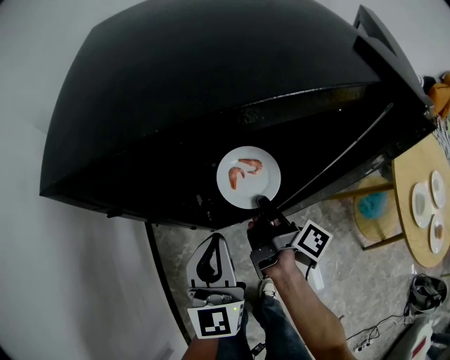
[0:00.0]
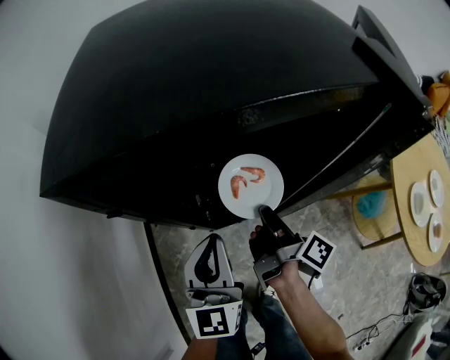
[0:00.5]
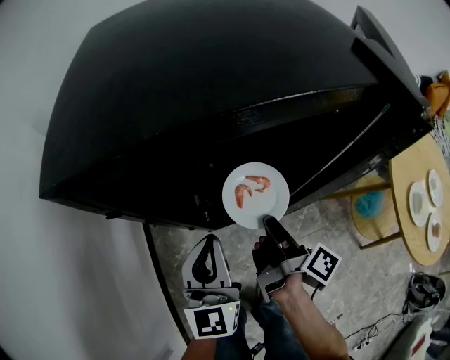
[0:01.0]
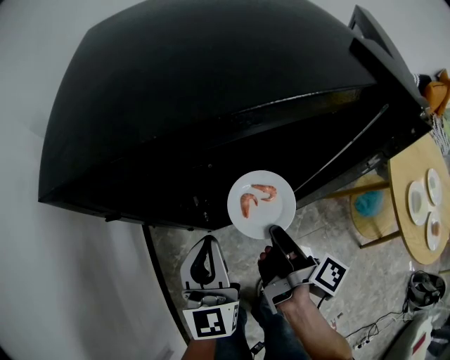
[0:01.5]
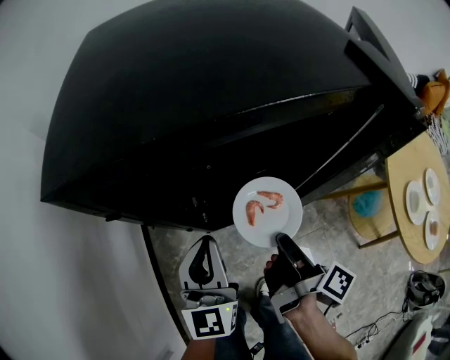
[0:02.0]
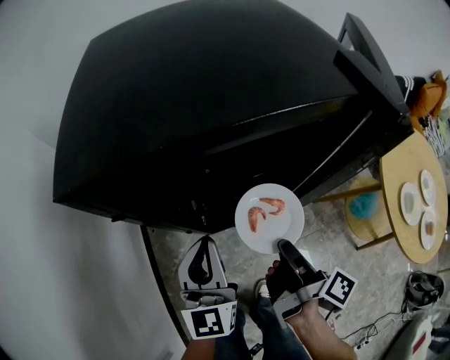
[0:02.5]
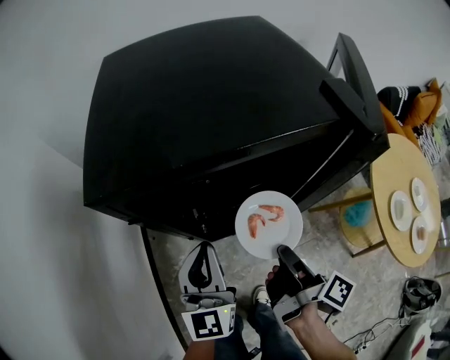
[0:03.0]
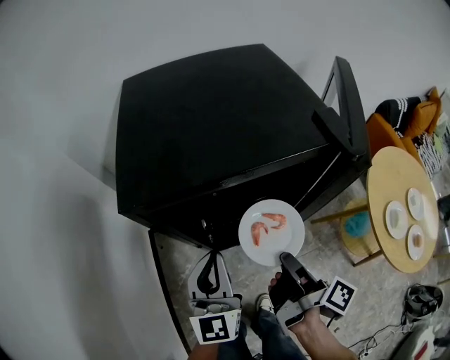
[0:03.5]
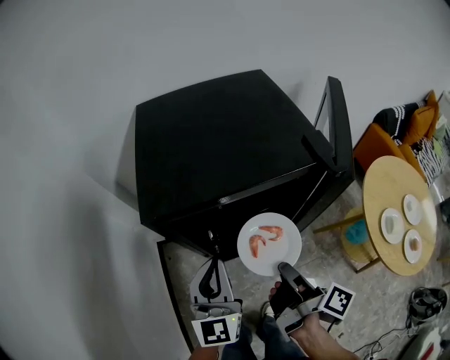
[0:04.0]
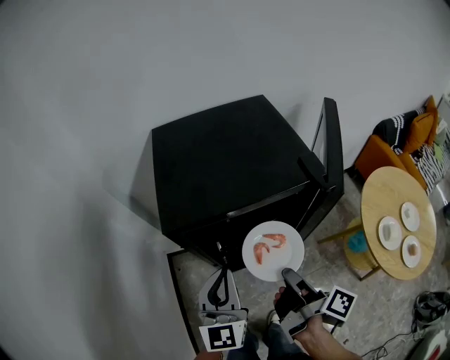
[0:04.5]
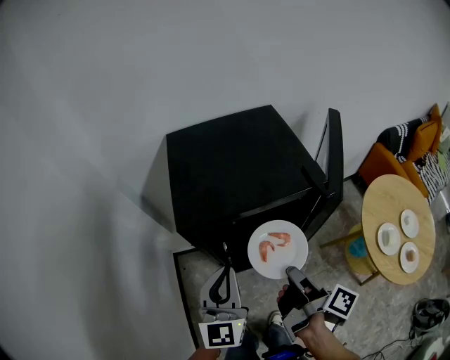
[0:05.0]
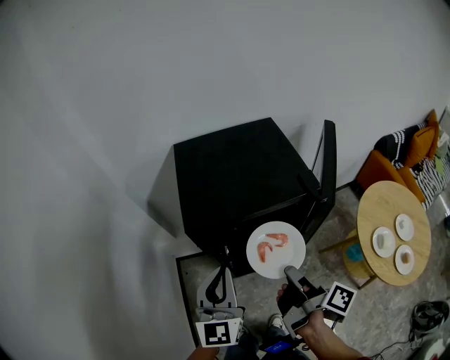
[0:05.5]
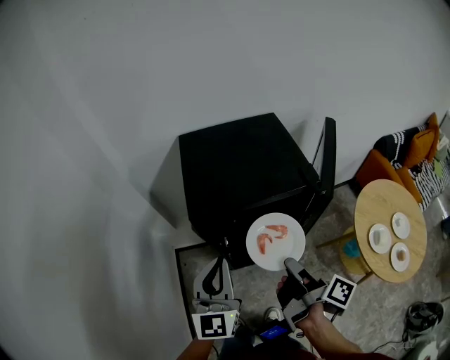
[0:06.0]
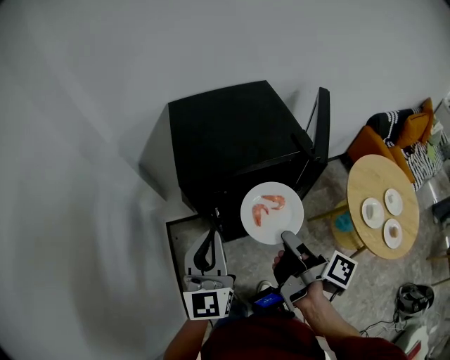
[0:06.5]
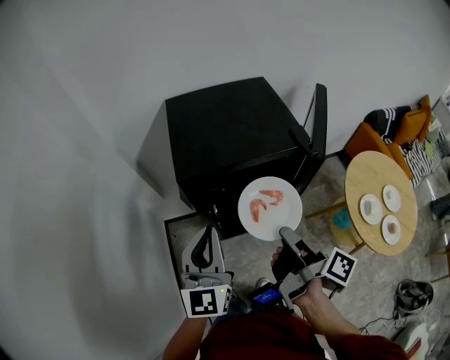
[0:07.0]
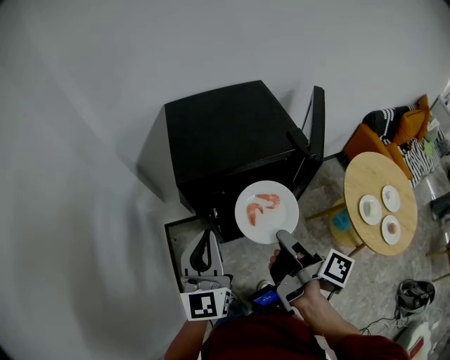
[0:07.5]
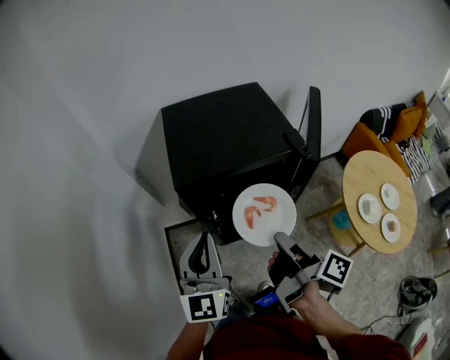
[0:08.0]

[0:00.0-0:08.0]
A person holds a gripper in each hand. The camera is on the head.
0:00.0 to 0:02.0: The right gripper moves backward, roughly 10 cm.
0:02.0 to 0:04.0: The grippers both shift upward by some 15 cm.
0:04.0 to 0:06.0: Both grippers travel together upward, some 15 cm.
0:06.0 to 0:08.0: The grippers move only a little.

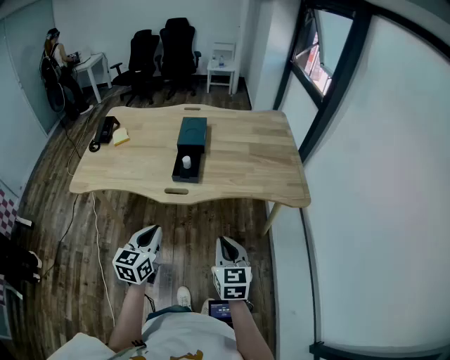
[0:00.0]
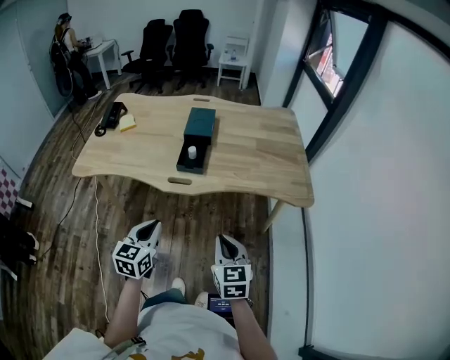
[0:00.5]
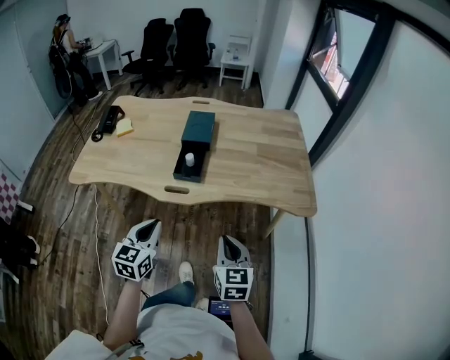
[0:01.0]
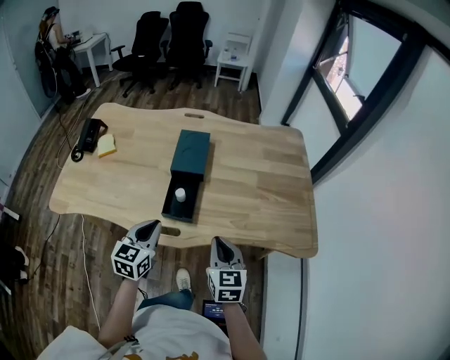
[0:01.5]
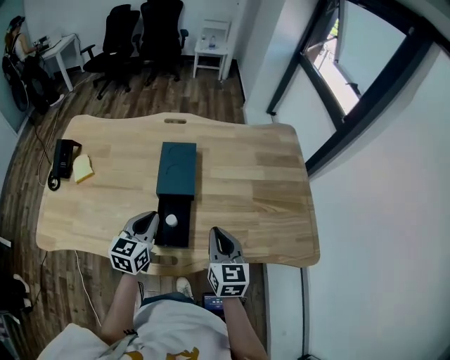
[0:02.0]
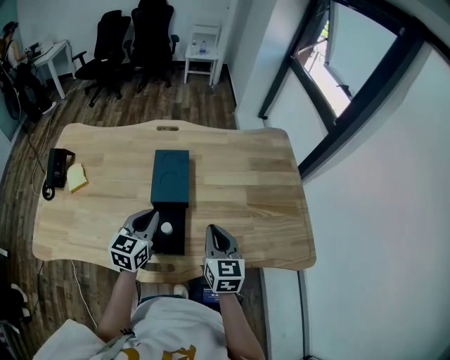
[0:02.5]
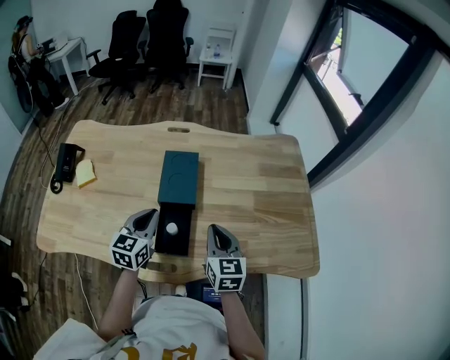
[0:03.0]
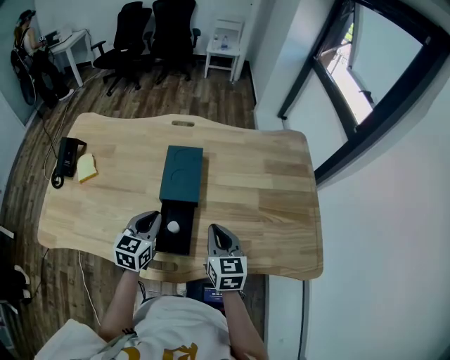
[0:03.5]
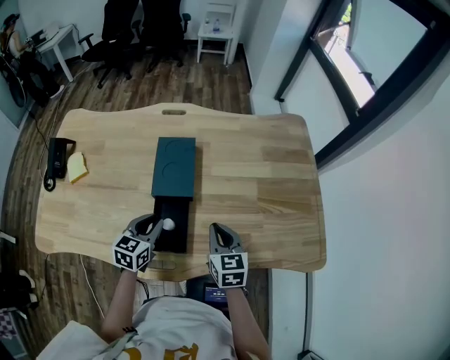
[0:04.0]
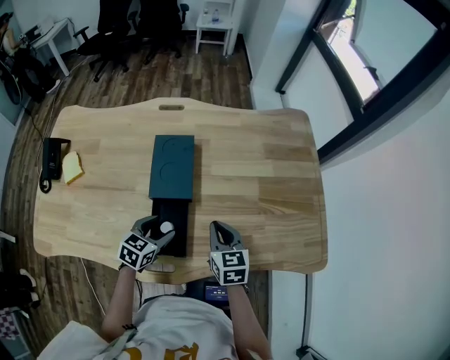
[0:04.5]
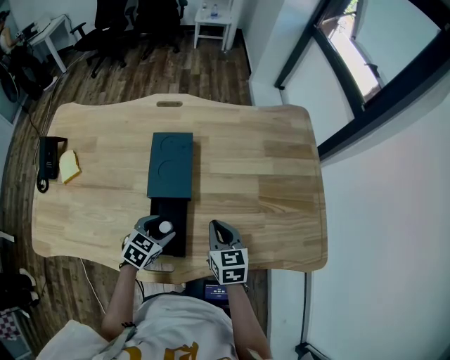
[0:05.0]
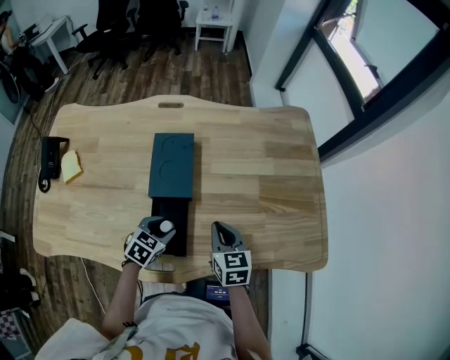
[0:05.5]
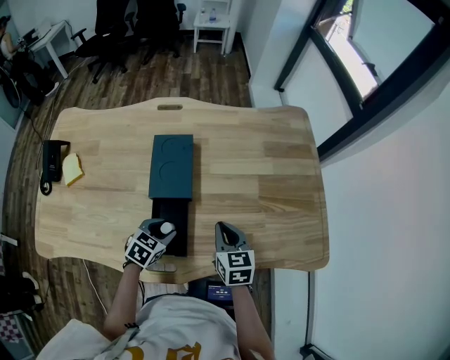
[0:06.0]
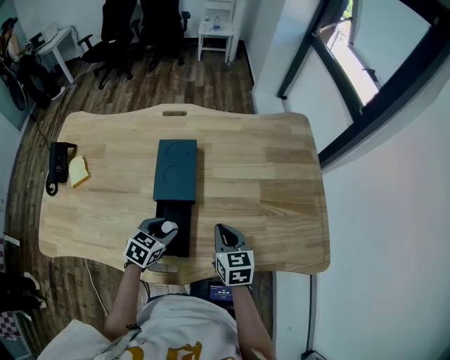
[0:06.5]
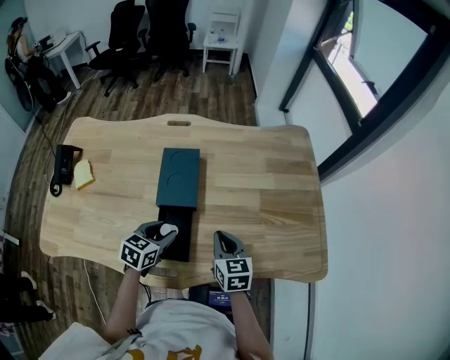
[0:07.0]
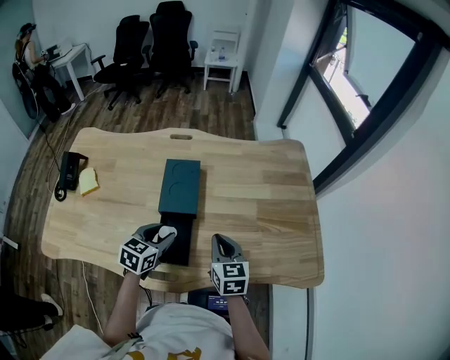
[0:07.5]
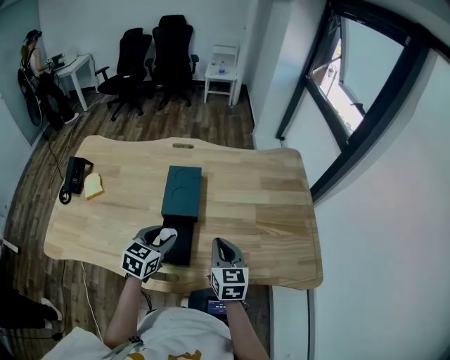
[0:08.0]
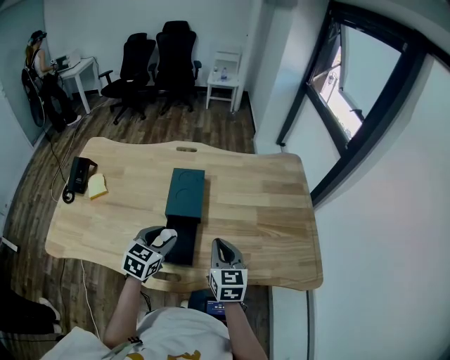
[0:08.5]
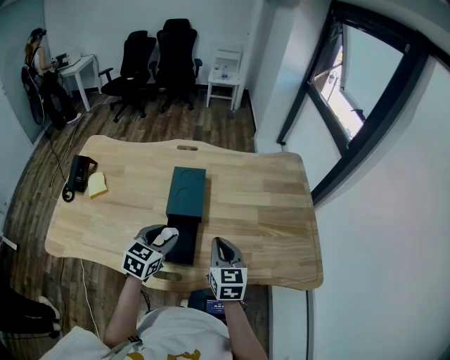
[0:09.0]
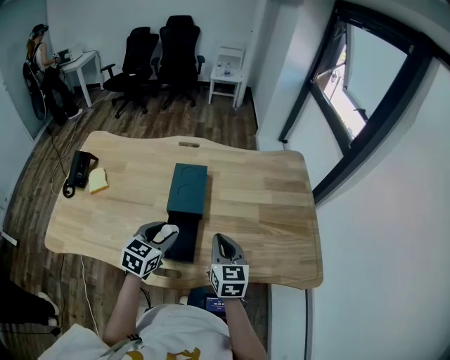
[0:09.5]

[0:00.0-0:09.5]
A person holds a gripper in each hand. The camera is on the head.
0:00.0 to 0:02.0: The two grippers go approximately 40 cm forward.
0:02.0 to 0:04.0: The left gripper heads downward, covering approximately 10 cm, while the right gripper shifts roughly 10 cm downward and forward.
0:04.0 to 0:05.5: The left gripper travels downward by about 5 cm, changes its angle by roughly 30 degrees, and opens.
0:05.5 to 0:07.5: The right gripper goes roughly 5 cm upward; the left gripper is displaced upward by about 10 cm.
0:07.5 to 0:09.5: The left gripper is displaced upward by some 5 cm. Meanwhile the right gripper moves roughly 5 cm.

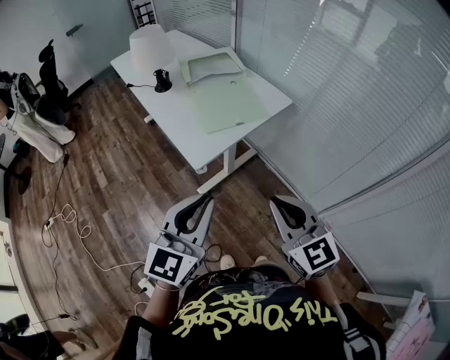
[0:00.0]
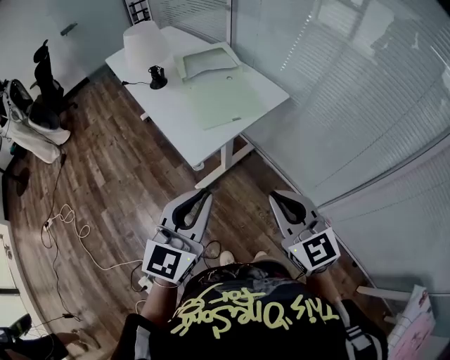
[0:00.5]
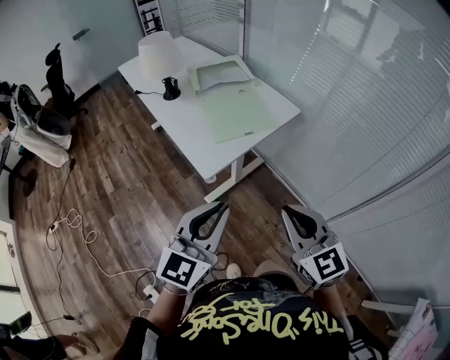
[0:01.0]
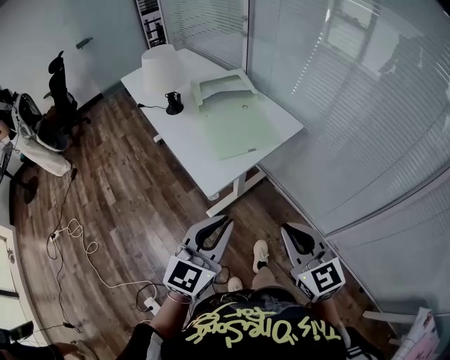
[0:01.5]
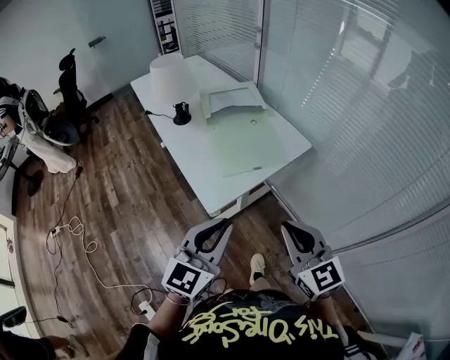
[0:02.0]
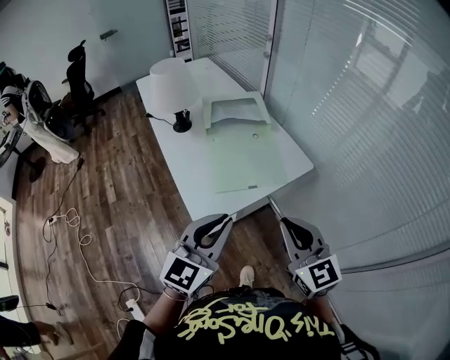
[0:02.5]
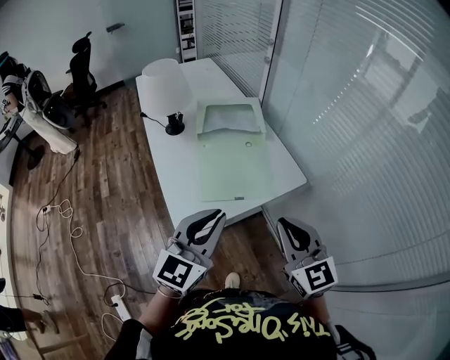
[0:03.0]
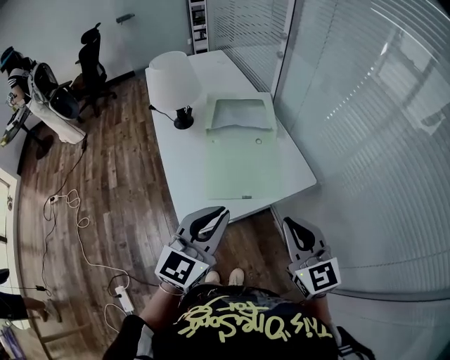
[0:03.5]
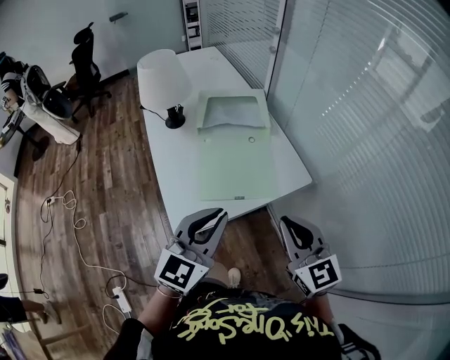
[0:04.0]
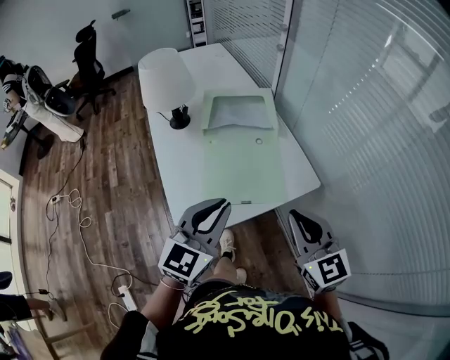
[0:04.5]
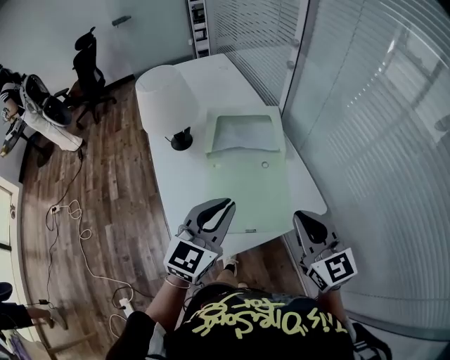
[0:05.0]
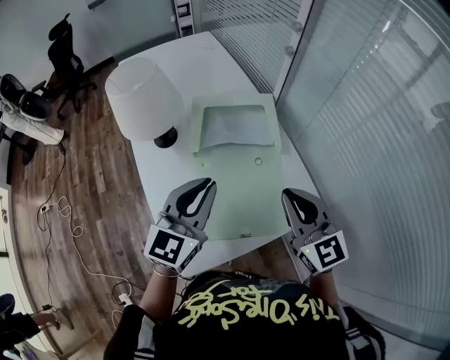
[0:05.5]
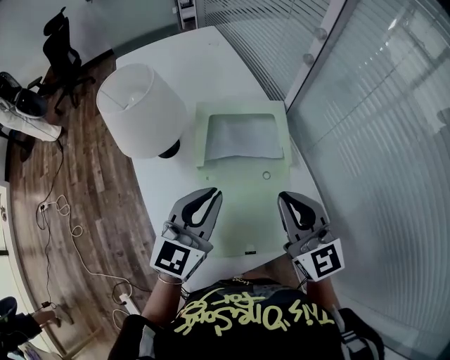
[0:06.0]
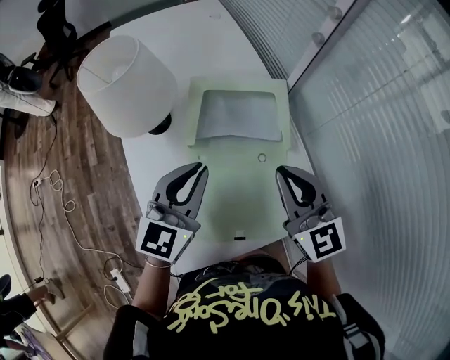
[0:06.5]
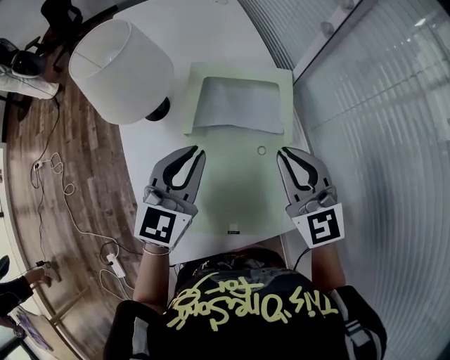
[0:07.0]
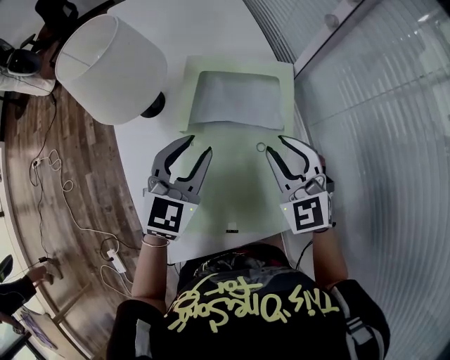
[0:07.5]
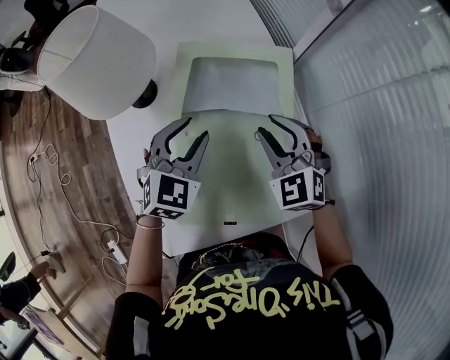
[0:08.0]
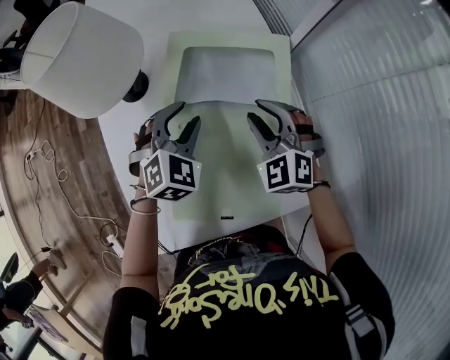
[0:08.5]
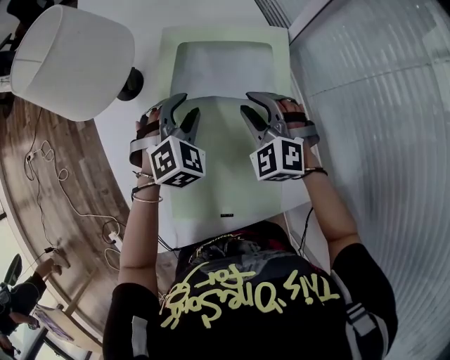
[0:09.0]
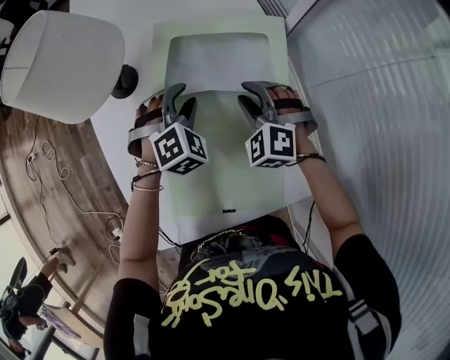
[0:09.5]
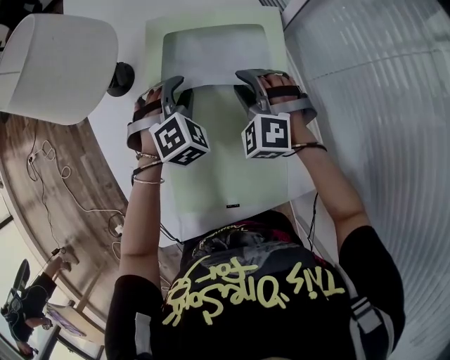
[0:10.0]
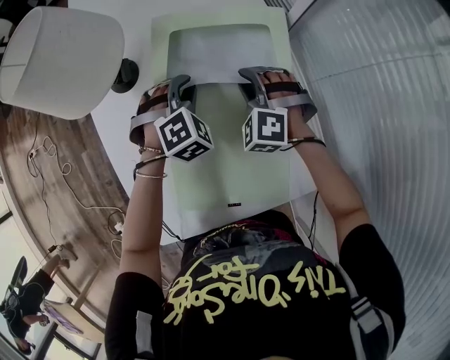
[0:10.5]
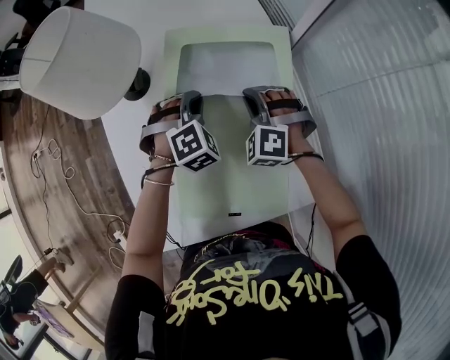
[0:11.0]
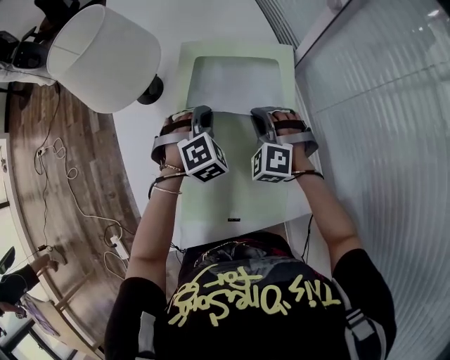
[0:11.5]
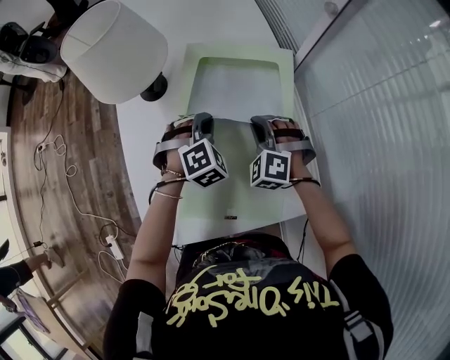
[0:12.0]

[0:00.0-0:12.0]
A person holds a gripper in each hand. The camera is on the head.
0:00.0 to 0:02.0: Both grippers move forward, some 10 cm.
0:02.0 to 0:04.0: Both grippers move forward and to the right, approximately 15 cm.
0:04.0 to 0:06.0: The two grippers go roughly 25 cm forward.
0:06.0 to 0:08.0: Both grippers move downward and forward, approximately 15 cm. The left gripper rotates roughly 40 degrees, and opens its fingers. The right gripper rotates approximately 40 degrees, and opens.
0:08.0 to 0:10.0: The grippers both shift downward and forward by roughly 10 cm. The left gripper turns by roughly 40 degrees. Meanwhile the right gripper changes its angle by about 30 degrees.
0:10.0 to 0:12.0: The right gripper closes its fingers. The left gripper travels backward by roughly 5 cm, and closes its fingers.
